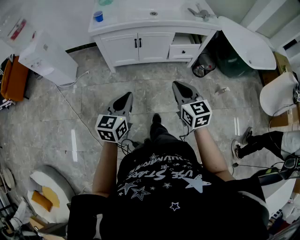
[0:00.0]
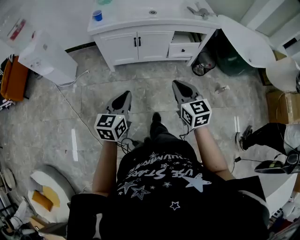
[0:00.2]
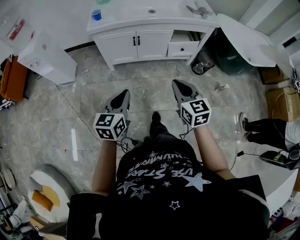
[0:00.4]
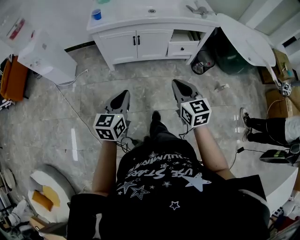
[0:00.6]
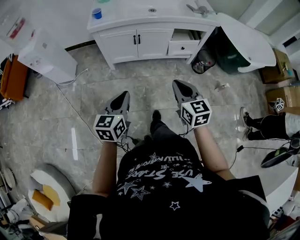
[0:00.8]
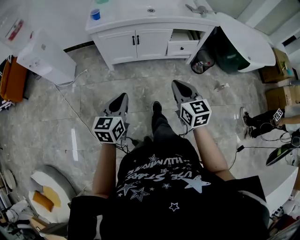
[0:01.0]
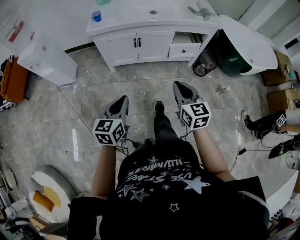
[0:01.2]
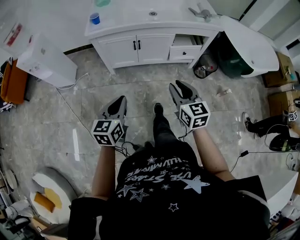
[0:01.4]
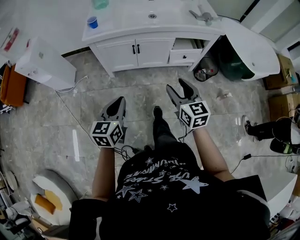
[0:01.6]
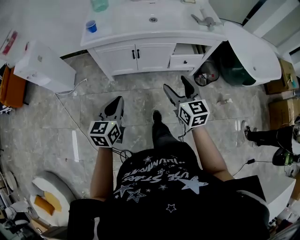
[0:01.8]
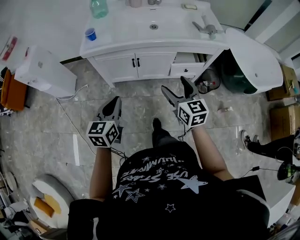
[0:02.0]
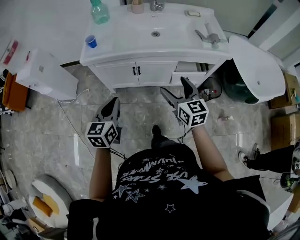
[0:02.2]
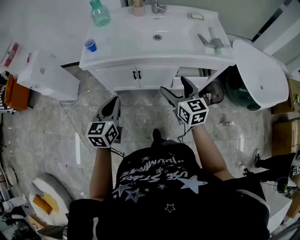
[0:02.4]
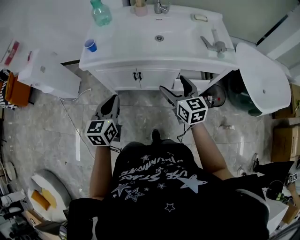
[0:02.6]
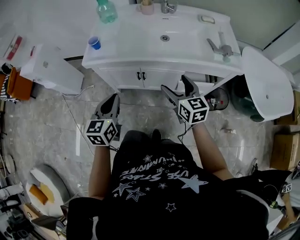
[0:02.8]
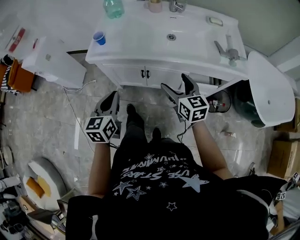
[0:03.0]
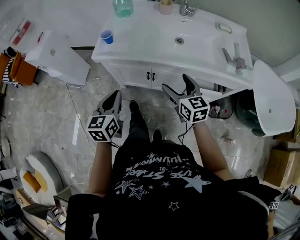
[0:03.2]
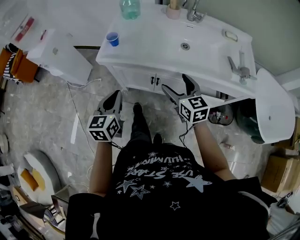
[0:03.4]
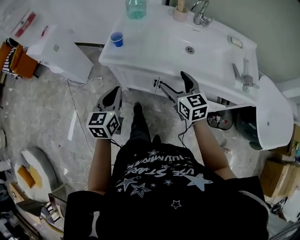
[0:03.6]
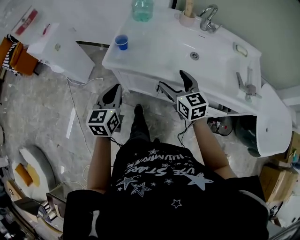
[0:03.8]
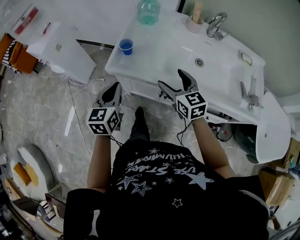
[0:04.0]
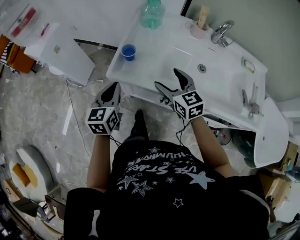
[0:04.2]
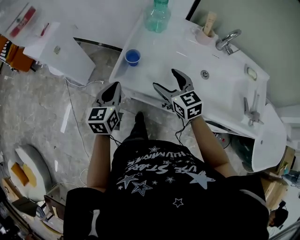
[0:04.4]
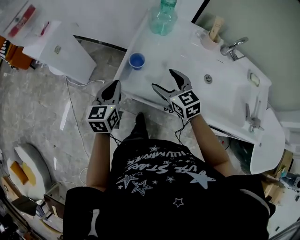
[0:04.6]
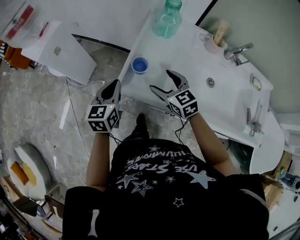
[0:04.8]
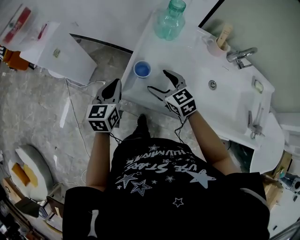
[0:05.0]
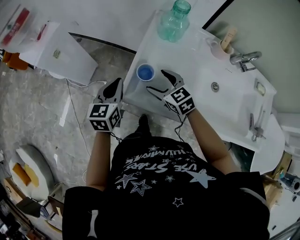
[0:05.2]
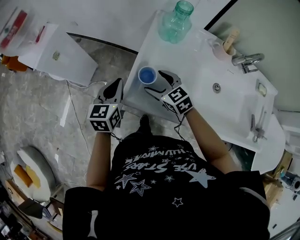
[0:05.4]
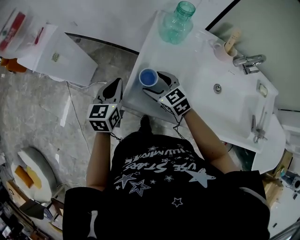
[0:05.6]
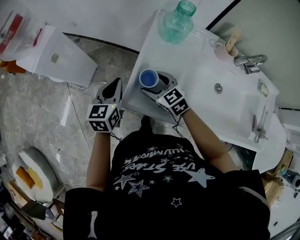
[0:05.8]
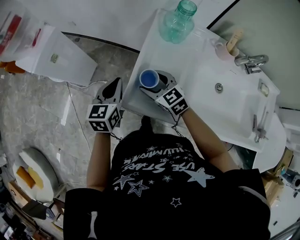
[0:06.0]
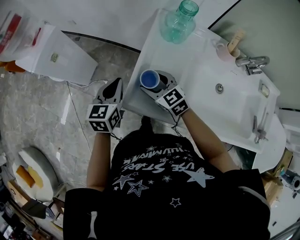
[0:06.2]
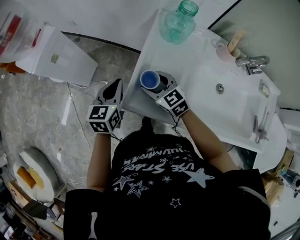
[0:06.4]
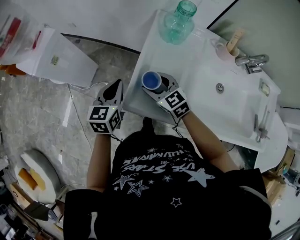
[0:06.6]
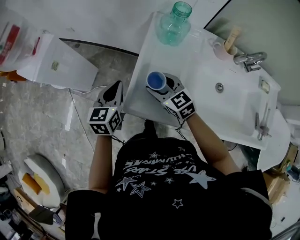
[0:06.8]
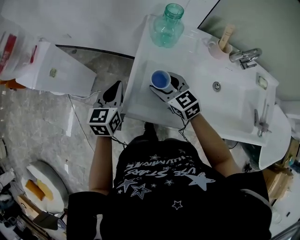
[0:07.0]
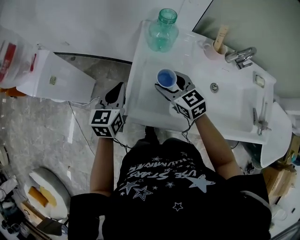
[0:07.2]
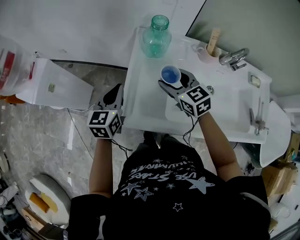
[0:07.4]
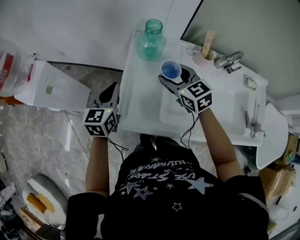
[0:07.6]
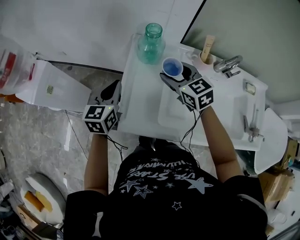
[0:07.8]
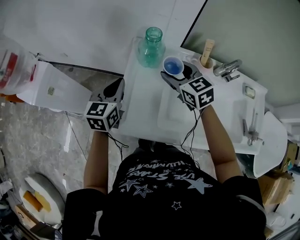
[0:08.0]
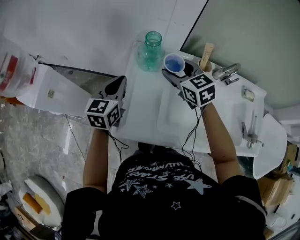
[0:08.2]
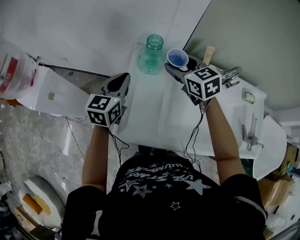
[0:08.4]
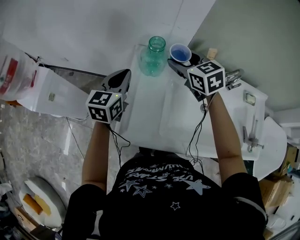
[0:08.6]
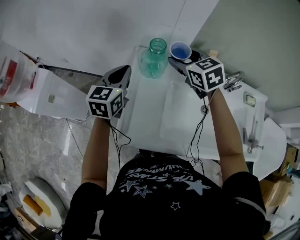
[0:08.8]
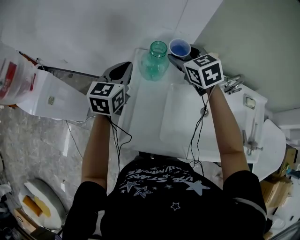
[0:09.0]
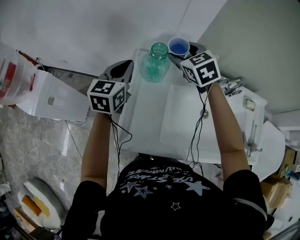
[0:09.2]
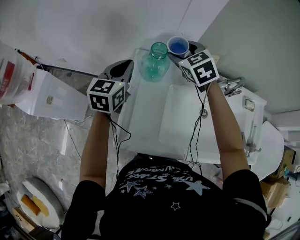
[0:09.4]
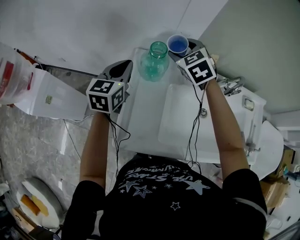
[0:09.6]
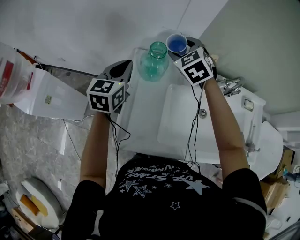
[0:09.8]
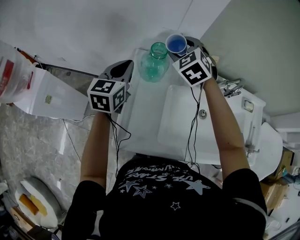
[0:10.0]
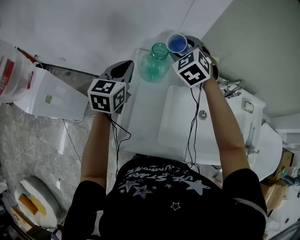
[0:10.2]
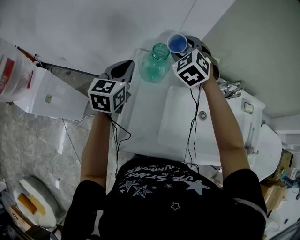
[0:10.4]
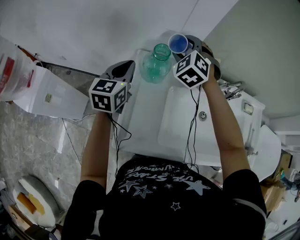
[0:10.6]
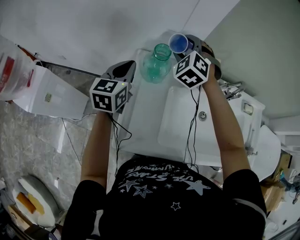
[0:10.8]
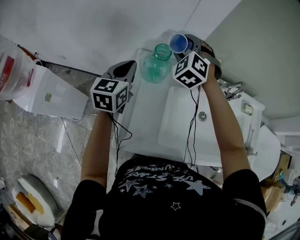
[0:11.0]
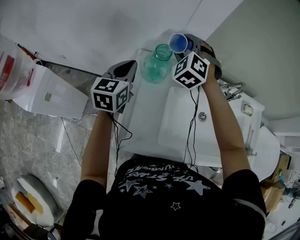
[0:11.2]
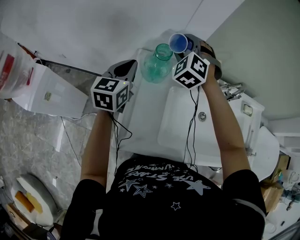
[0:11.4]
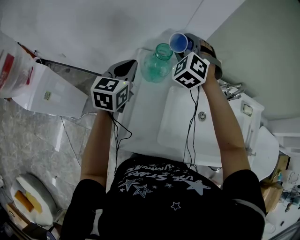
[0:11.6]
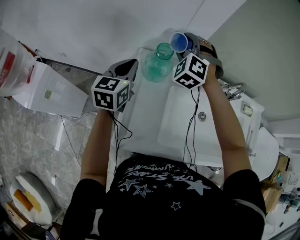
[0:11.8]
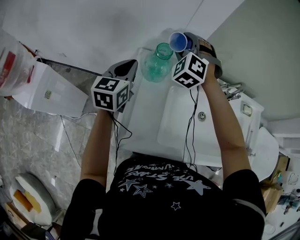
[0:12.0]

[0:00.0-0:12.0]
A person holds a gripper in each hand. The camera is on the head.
0:00.0 to 0:01.6: The two grippers go approximately 10 cm forward. The right gripper opens.
0:01.6 to 0:03.0: Both grippers travel together forward, about 25 cm. The right gripper opens its fingers.
0:03.0 to 0:04.4: Both grippers travel together forward and to the left, some 30 cm. The right gripper turns by about 30 degrees.
0:04.4 to 0:06.0: The left gripper heads forward, covering roughly 15 cm, while the right gripper heads forward, to the left and downward, covering about 20 cm.
0:06.0 to 0:07.6: The left gripper travels to the right and upward by roughly 10 cm, while the right gripper goes some 20 cm to the right and upward.
0:07.6 to 0:09.0: The left gripper heads forward, upward and to the right, covering about 15 cm, while the right gripper moves forward and upward, some 15 cm.
0:09.0 to 0:10.4: The right gripper changes its angle by some 40 degrees.
0:10.4 to 0:12.0: There are only small adjustments of the grippers.

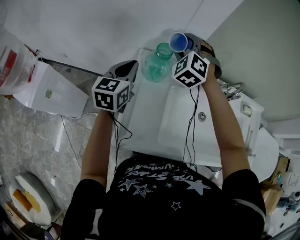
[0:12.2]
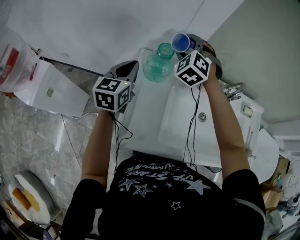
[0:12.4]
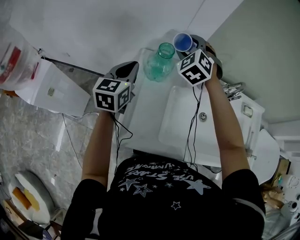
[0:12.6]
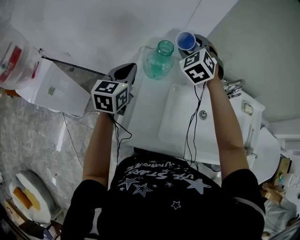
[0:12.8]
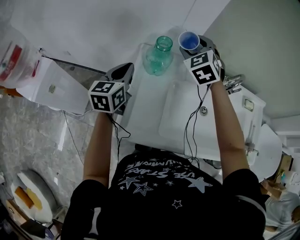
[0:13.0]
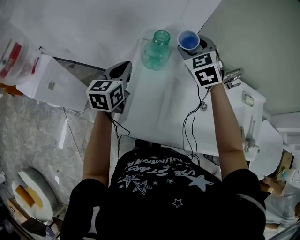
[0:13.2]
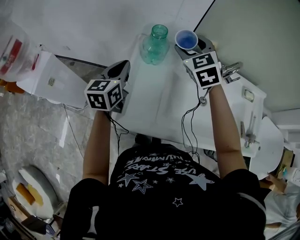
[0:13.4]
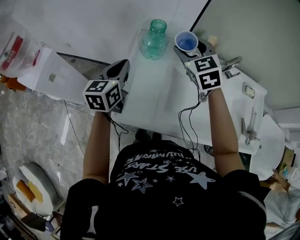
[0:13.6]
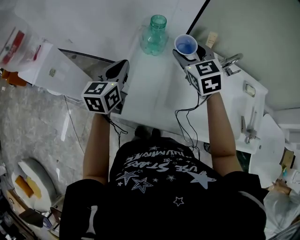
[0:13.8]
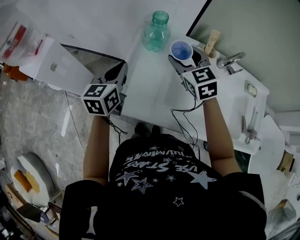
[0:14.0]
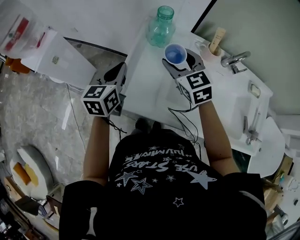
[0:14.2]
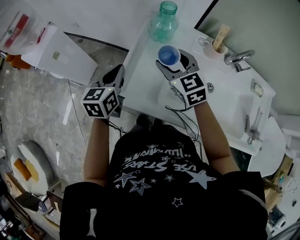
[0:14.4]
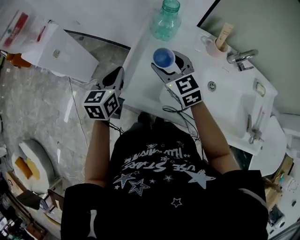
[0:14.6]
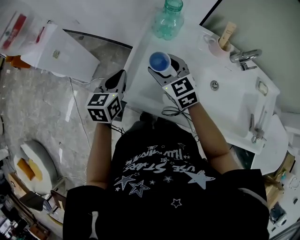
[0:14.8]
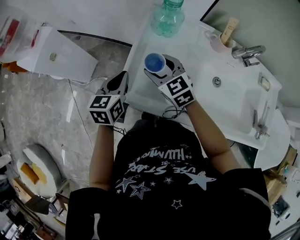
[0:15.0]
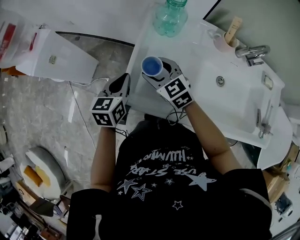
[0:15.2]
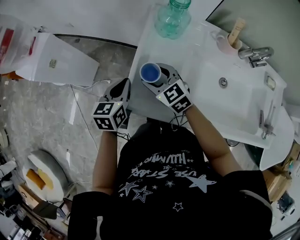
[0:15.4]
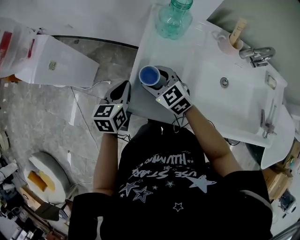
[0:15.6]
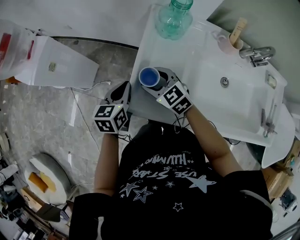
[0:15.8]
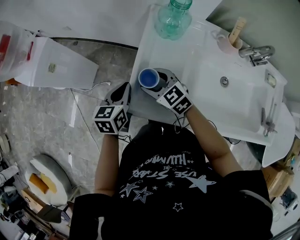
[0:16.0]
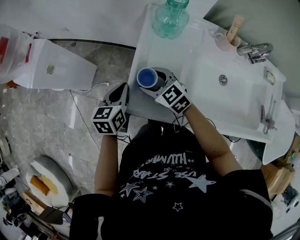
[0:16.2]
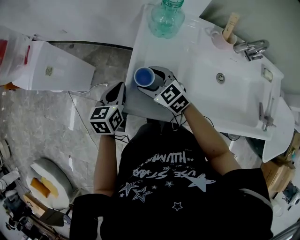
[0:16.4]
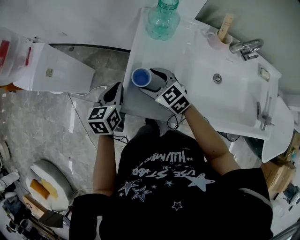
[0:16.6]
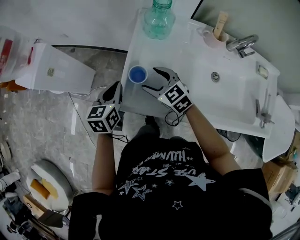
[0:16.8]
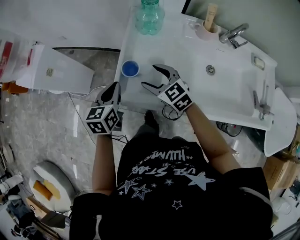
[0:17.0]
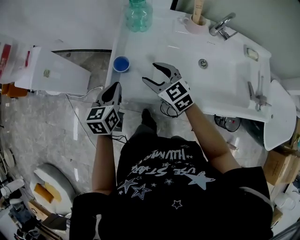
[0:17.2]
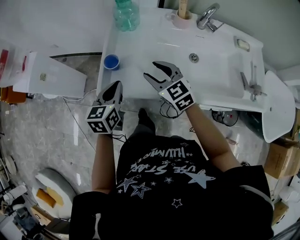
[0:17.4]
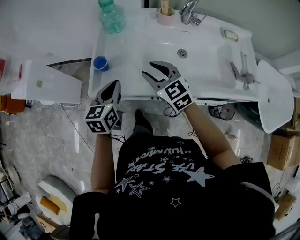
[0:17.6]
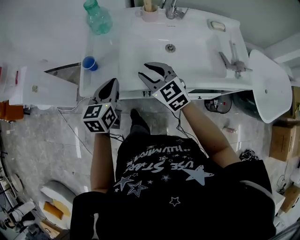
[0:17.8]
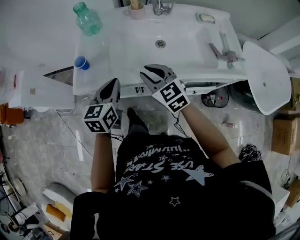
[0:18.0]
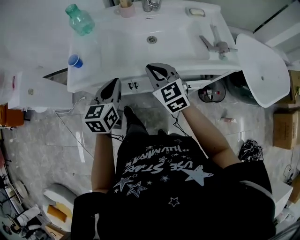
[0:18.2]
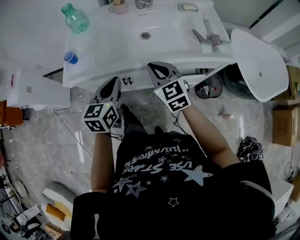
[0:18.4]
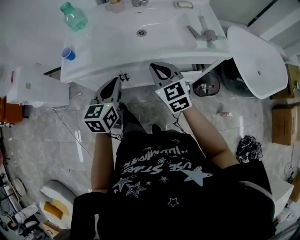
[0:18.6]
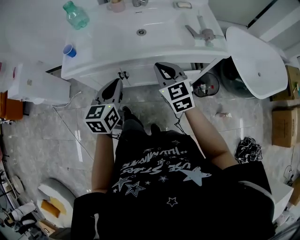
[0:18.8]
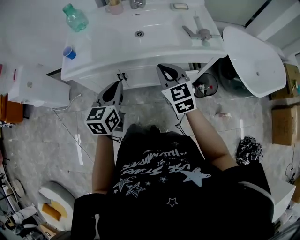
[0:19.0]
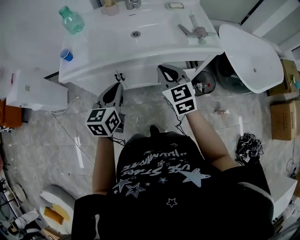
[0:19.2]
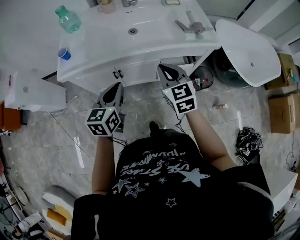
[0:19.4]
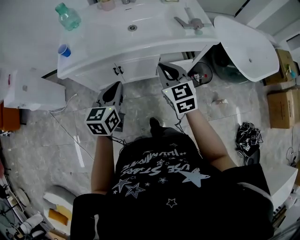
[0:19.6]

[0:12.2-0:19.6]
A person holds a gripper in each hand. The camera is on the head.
0:12.2 to 0:13.6: The right gripper travels backward and to the right by some 15 cm, and turns by approximately 40 degrees; the left gripper moves backward, approximately 10 cm.
0:13.6 to 0:15.2: The left gripper heads downward, backward and to the left, covering about 15 cm. The right gripper travels downward, to the left and backward by some 30 cm, and swivels some 30 degrees.
0:15.2 to 0:16.6: The grippers make only small movements.
0:16.6 to 0:18.2: The right gripper changes place by approximately 40 cm, turns by about 40 degrees, and closes its fingers. Meanwhile the left gripper shifts by about 40 cm, and turns by roughly 20 degrees.
0:18.2 to 0:19.6: The two grippers go roughly 20 cm backward and to the right.

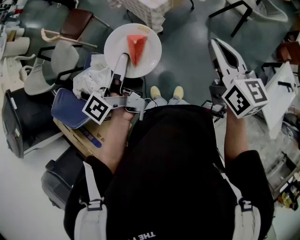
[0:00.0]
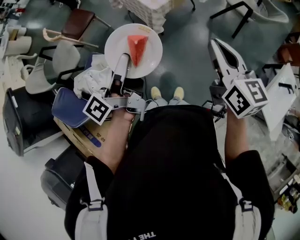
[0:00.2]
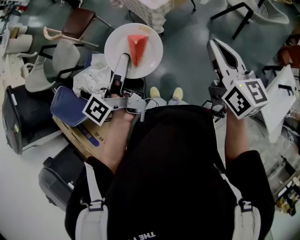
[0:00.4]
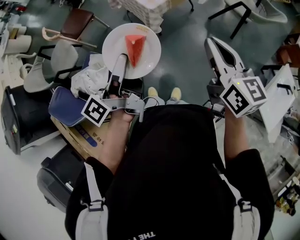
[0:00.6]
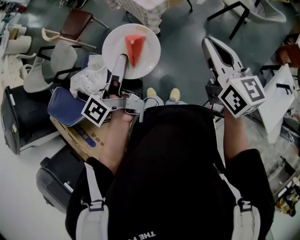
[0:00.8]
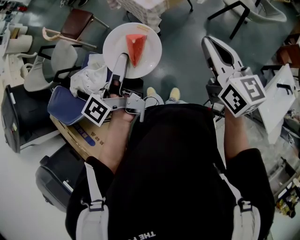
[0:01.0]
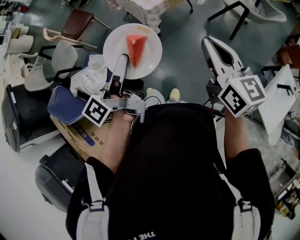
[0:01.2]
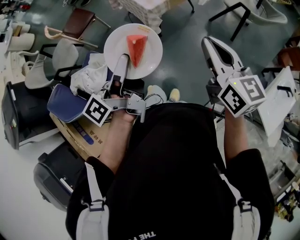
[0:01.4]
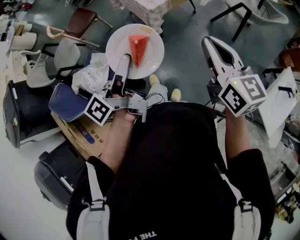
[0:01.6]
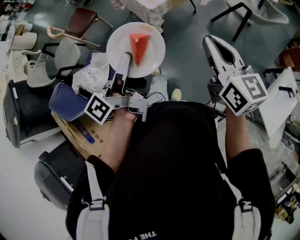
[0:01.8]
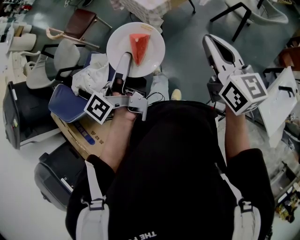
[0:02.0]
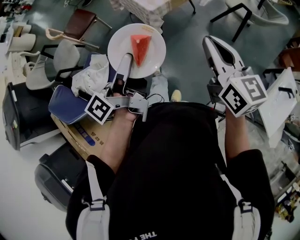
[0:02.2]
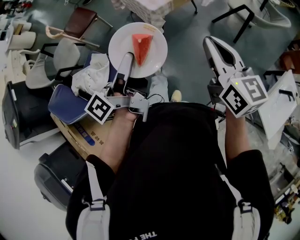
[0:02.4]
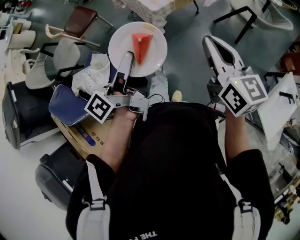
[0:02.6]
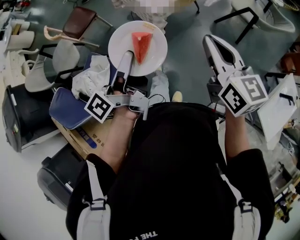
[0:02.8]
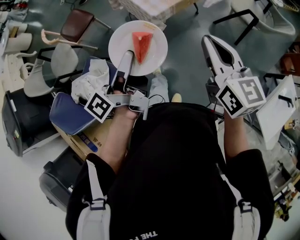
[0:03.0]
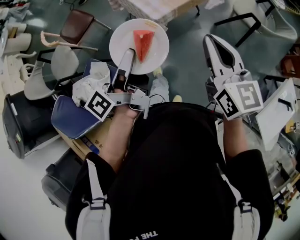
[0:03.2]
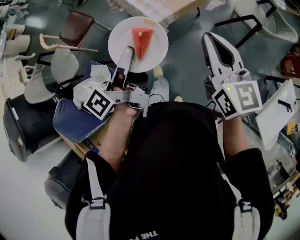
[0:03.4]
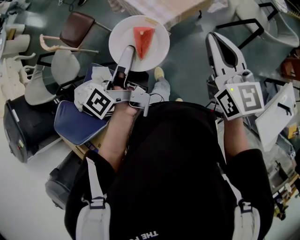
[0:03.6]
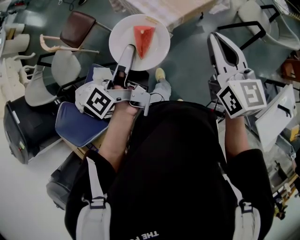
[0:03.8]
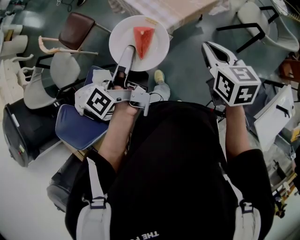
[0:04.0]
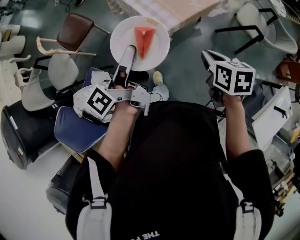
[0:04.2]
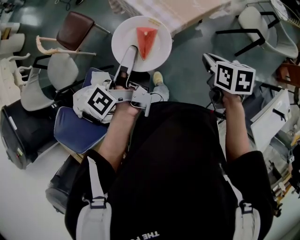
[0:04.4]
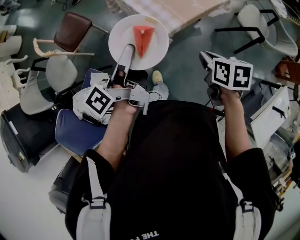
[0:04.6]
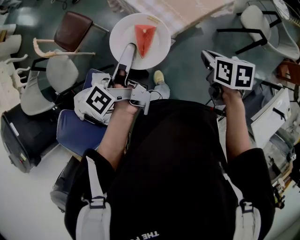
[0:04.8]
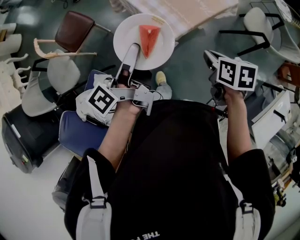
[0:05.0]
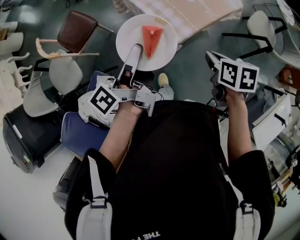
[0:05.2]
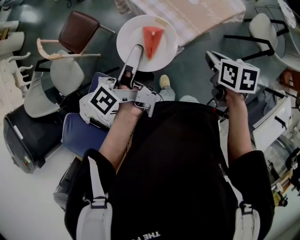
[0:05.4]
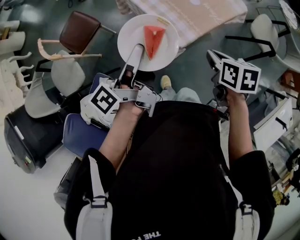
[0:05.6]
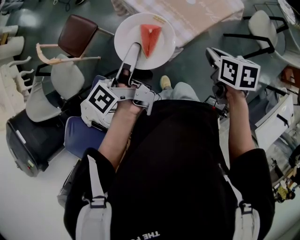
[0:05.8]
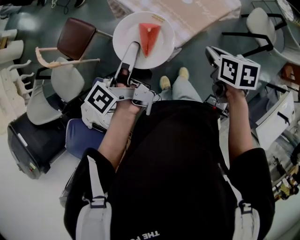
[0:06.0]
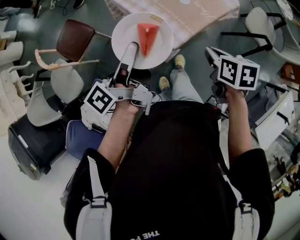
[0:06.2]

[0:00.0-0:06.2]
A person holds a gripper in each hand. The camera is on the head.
0:01.6 to 0:03.2: The right gripper changes place by roughly 15 cm.
0:03.2 to 0:04.6: The right gripper travels downward by roughly 15 cm, and points its fingers some 40 degrees further downward.
0:04.6 to 0:06.2: The right gripper ends up roughly 10 cm from where it was.
